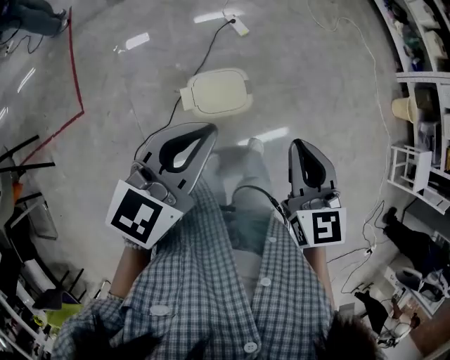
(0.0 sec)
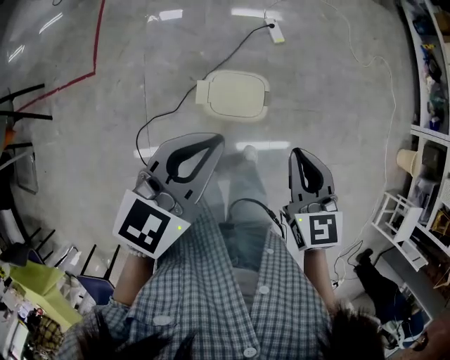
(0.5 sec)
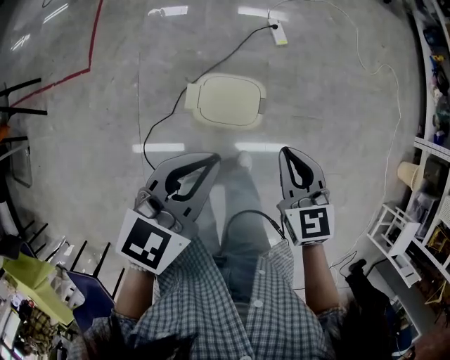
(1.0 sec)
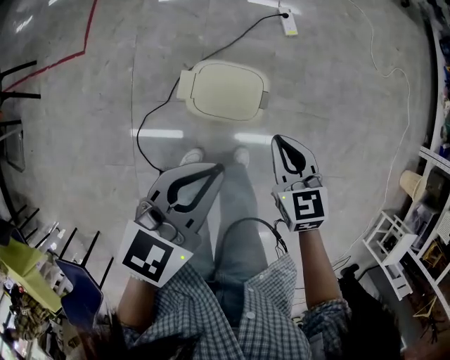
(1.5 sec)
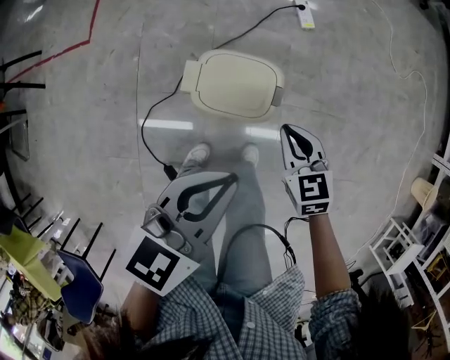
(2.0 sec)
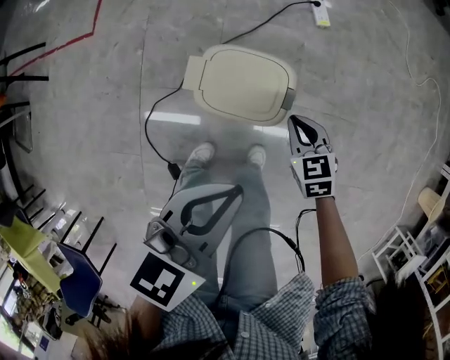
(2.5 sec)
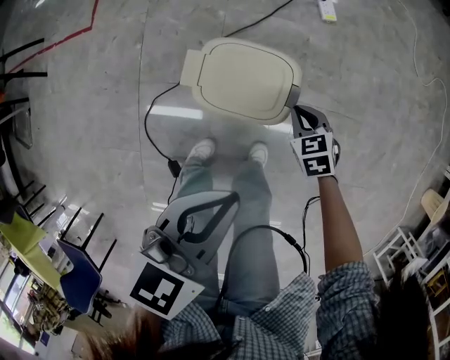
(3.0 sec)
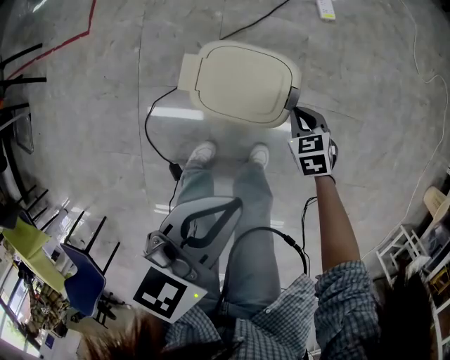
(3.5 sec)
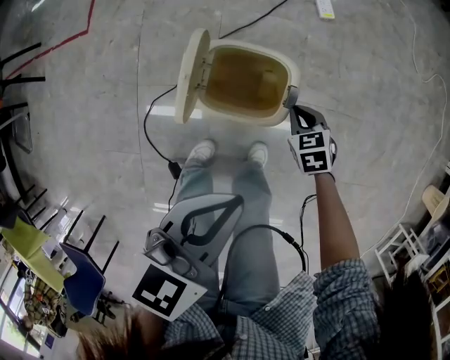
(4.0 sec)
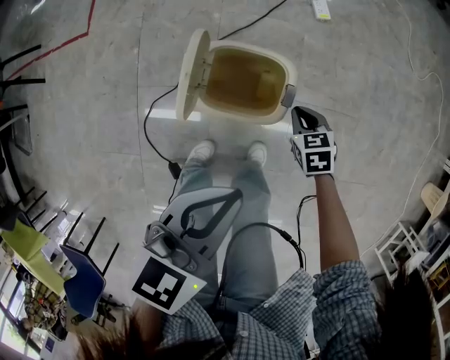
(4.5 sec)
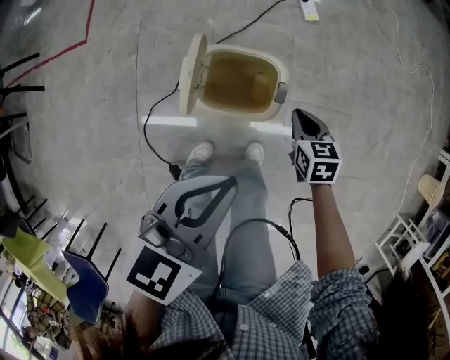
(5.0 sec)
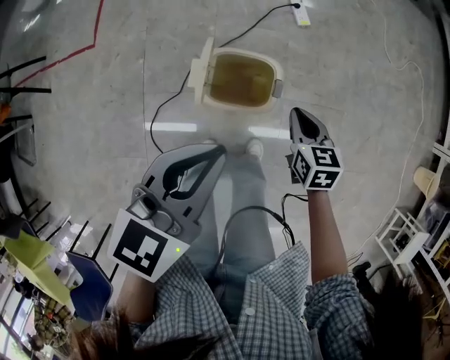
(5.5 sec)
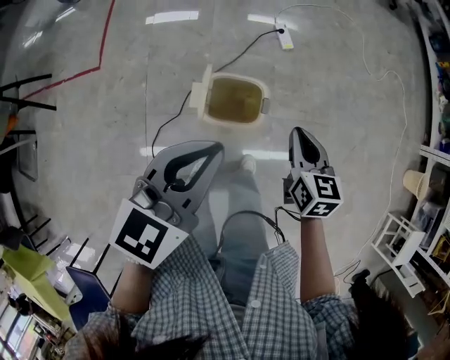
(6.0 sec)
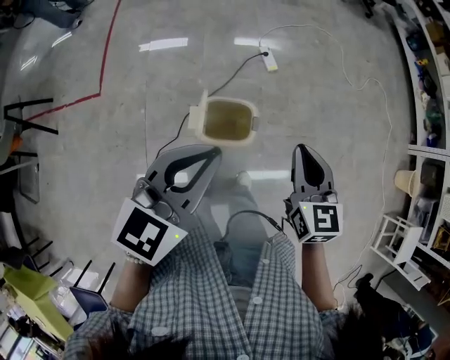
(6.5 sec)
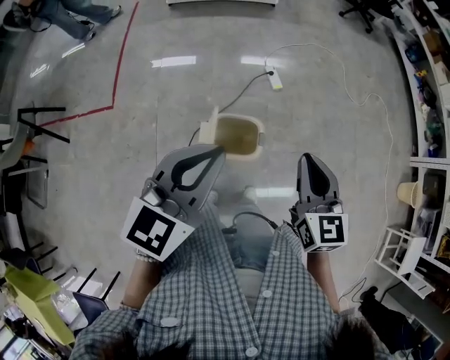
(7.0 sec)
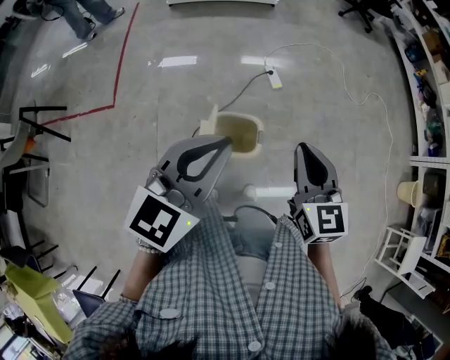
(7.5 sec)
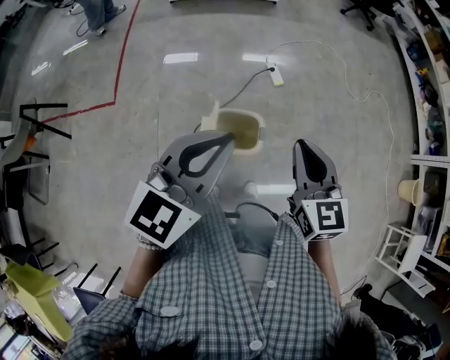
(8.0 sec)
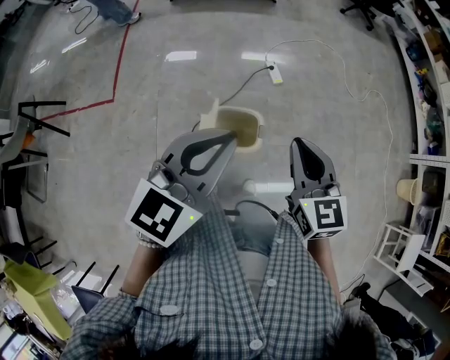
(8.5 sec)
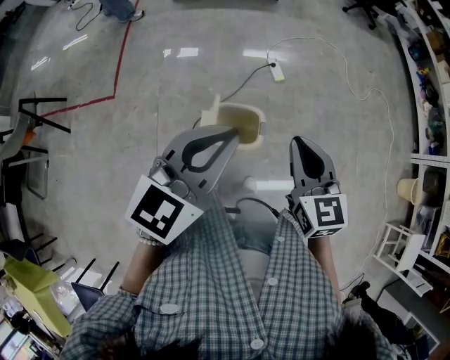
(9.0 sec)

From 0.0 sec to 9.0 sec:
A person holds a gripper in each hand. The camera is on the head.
From 0.0 sec to 2.0 sec: The right gripper shifts approximately 35 cm downward, and changes its angle by some 40 degrees. The left gripper is displaced downward by about 20 cm, and rotates about 20 degrees.
From 2.0 sec to 4.5 sec: The right gripper is displaced downward by about 15 cm.
From 4.5 sec to 7.0 sec: The right gripper travels upward by approximately 50 cm, and angles its fingers upward, by approximately 40 degrees; the left gripper goes roughly 25 cm upward, and rotates about 30 degrees.
From 7.0 sec to 9.0 sec: The grippers move only a little.

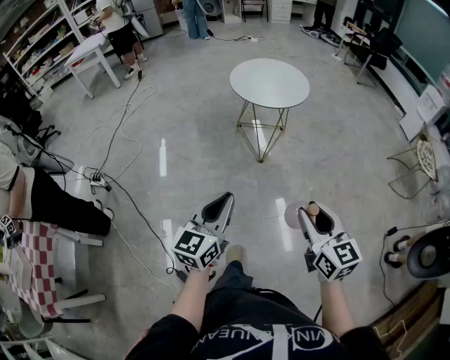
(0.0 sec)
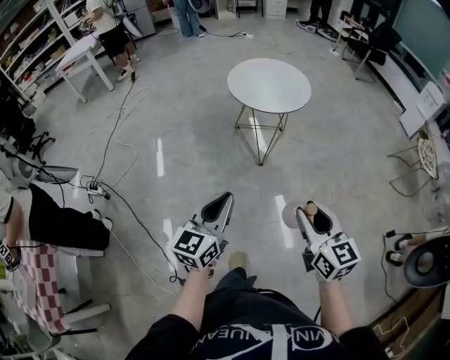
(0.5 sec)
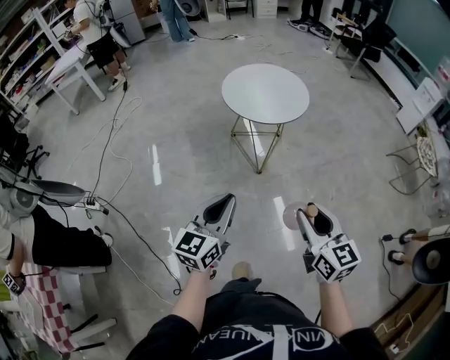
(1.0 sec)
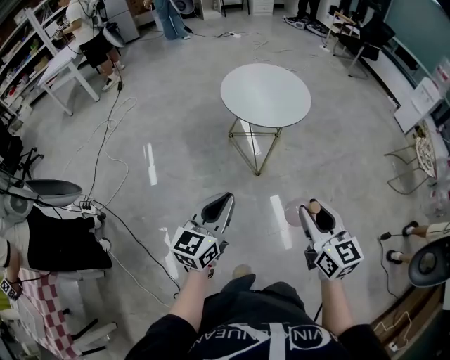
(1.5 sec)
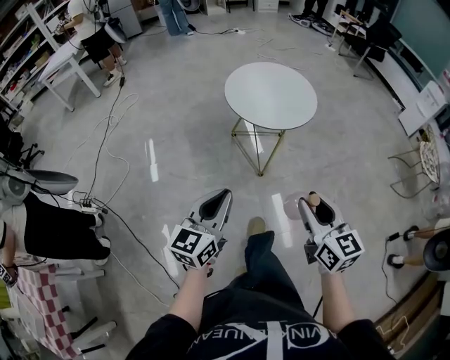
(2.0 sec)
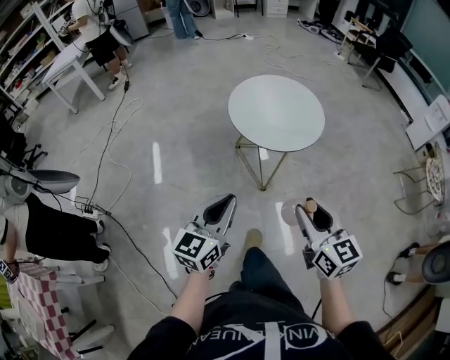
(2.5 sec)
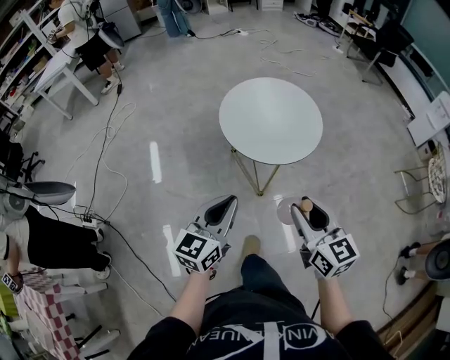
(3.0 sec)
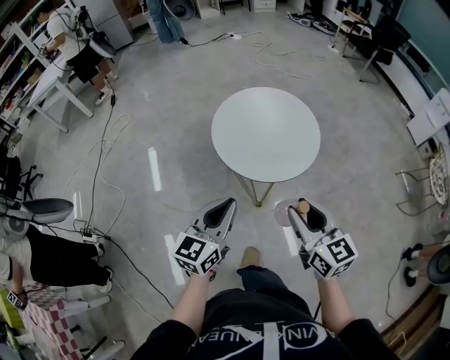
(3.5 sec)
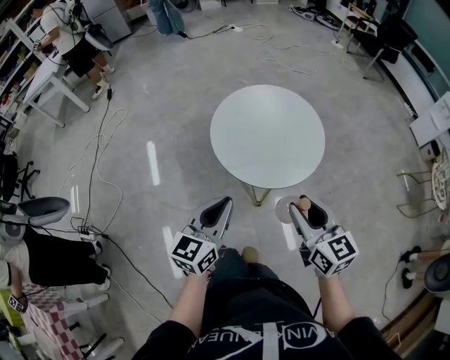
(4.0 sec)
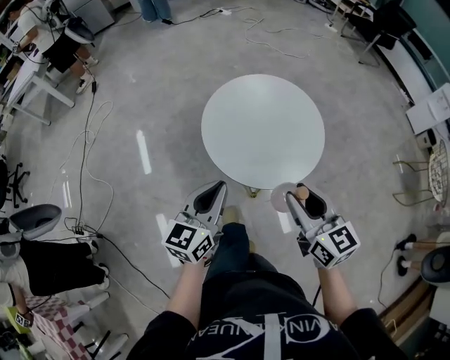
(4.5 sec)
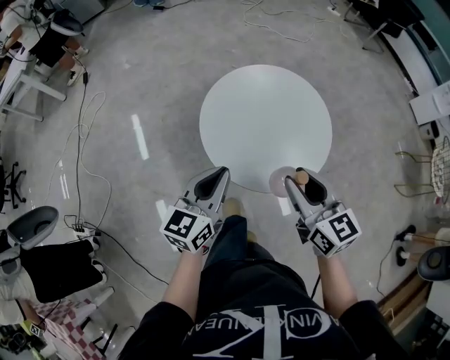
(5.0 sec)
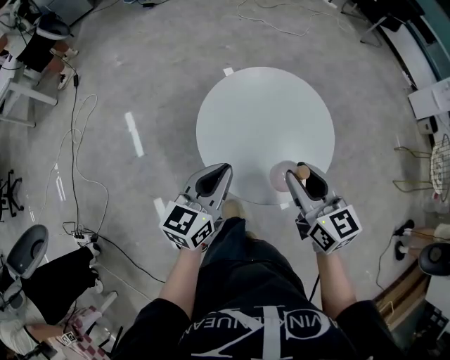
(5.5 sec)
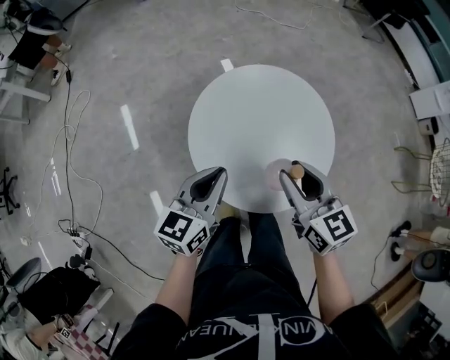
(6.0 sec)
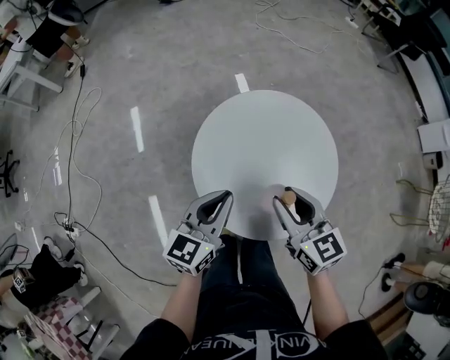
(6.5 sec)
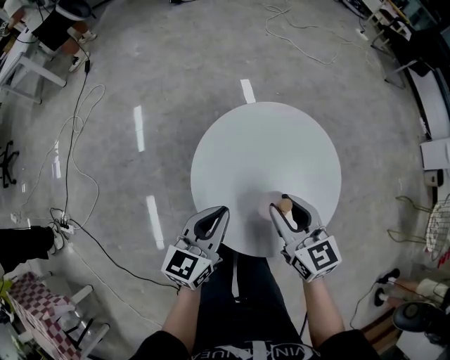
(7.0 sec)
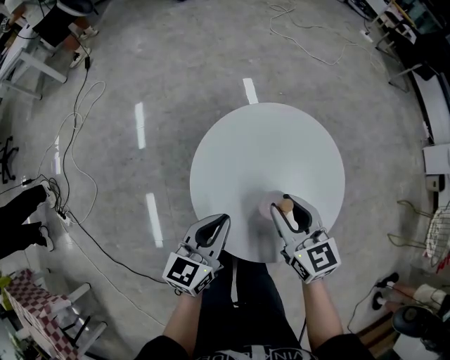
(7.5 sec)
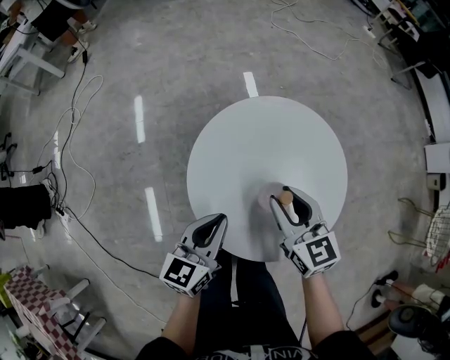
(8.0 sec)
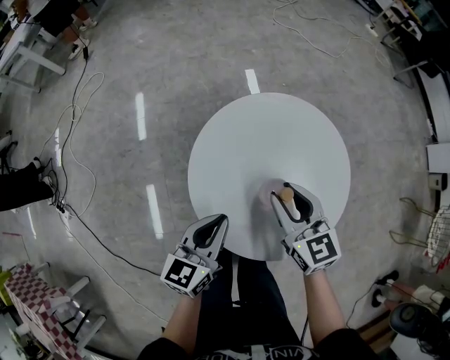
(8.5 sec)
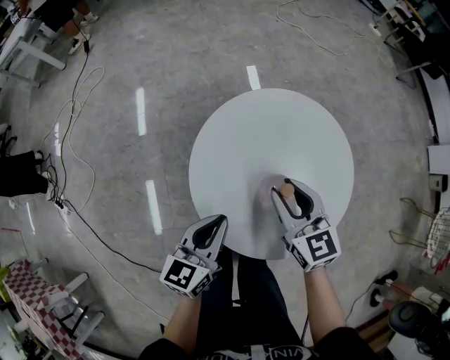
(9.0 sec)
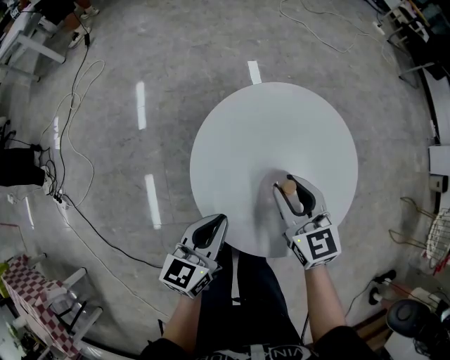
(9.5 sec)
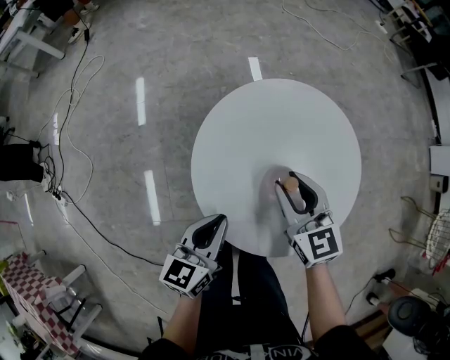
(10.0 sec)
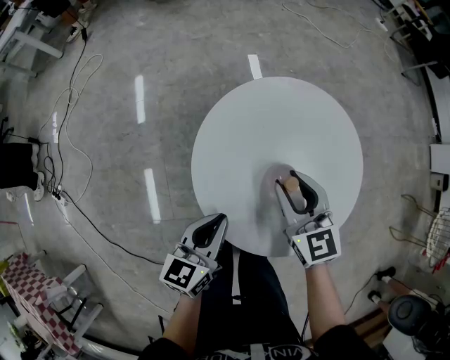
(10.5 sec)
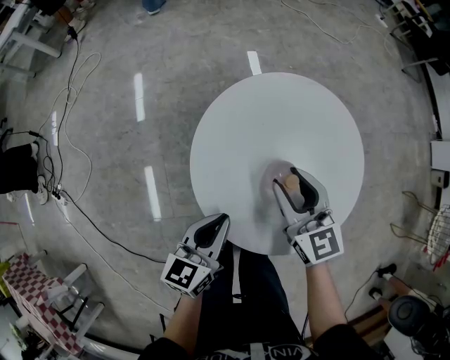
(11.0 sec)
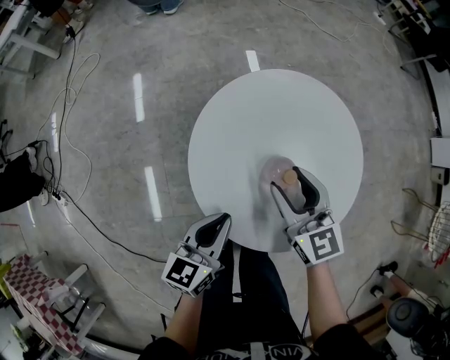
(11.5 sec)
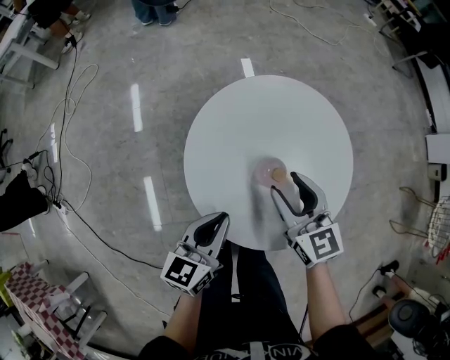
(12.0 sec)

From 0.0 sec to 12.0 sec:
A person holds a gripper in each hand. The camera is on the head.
From 0.0 sec to 2.0 sec: The grippers both shift forward by some 25 cm.
From 2.0 sec to 4.0 sec: Both grippers move forward, approximately 30 cm.
From 4.0 sec to 6.0 sec: Both grippers travel together forward, approximately 25 cm.
From 6.0 sec to 8.0 sec: The right gripper travels forward and downward by about 10 cm, while the left gripper travels downward by roughly 5 cm.
From 8.0 sec to 10.0 sec: The left gripper shifts by some 5 cm.
From 10.0 sec to 12.0 sec: There are only small adjustments of the grippers.

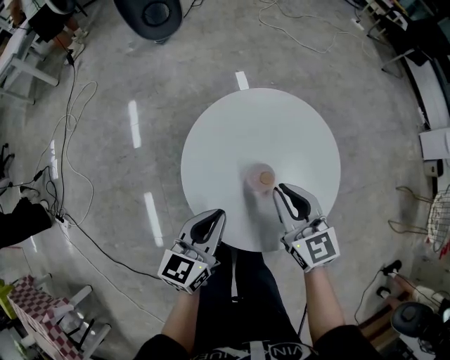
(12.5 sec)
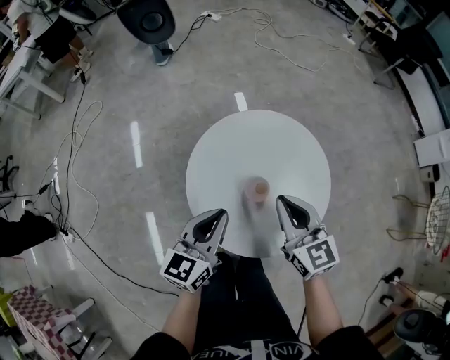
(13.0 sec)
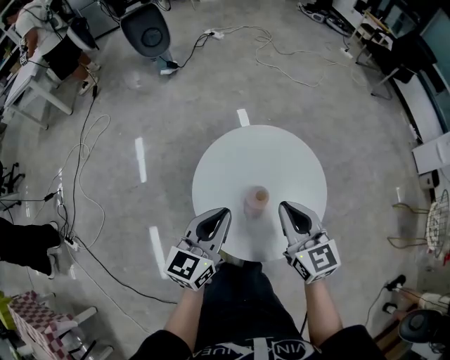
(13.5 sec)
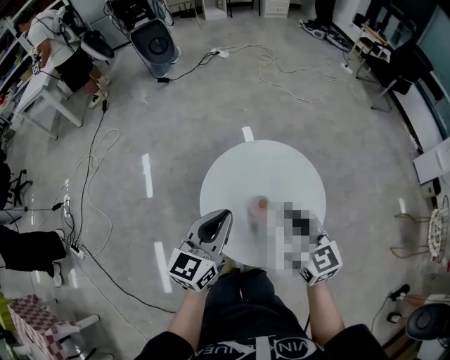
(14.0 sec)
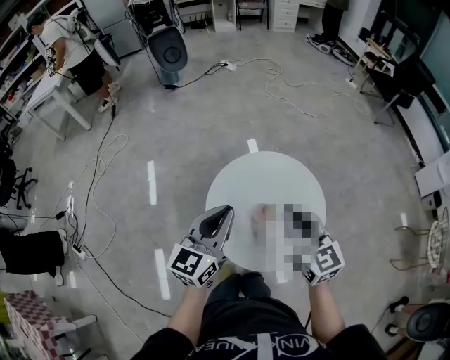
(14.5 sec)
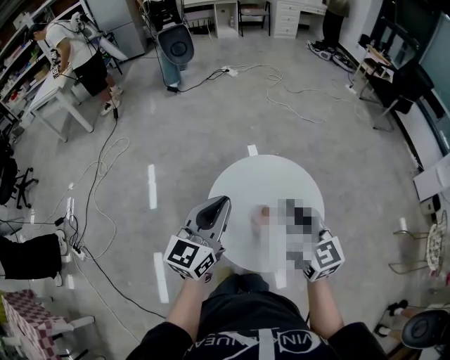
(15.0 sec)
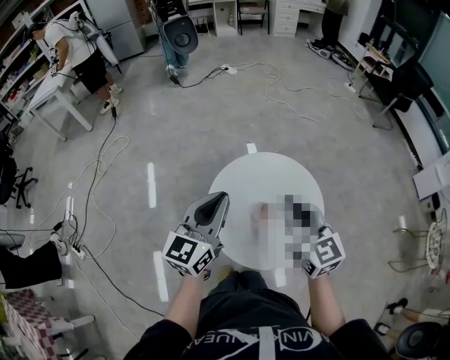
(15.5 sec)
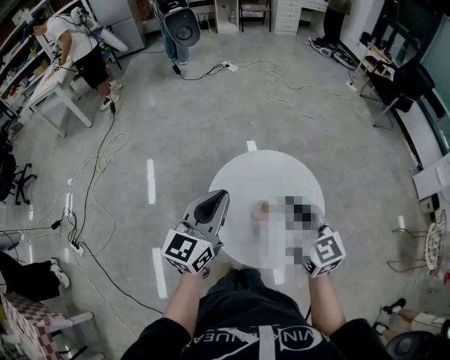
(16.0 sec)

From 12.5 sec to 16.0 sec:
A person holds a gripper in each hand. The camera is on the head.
From 12.5 sec to 14.5 sec: Both grippers move upward, approximately 15 cm.
From 14.5 sec to 16.0 sec: The grippers move only a little.

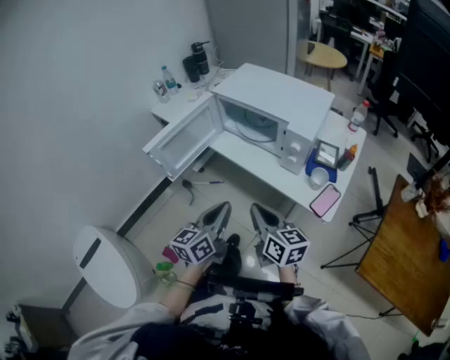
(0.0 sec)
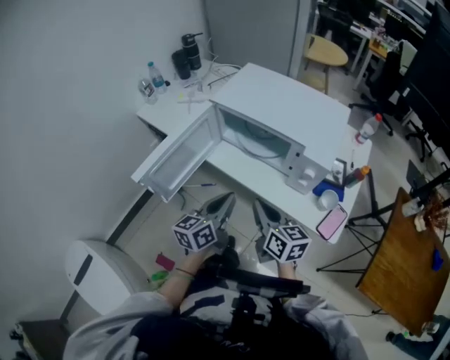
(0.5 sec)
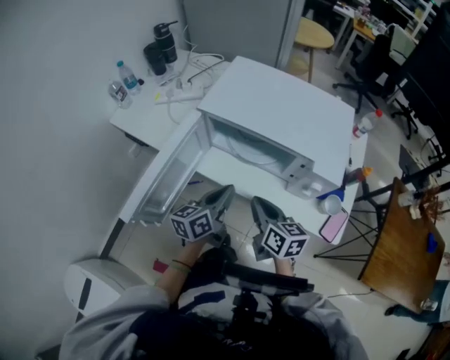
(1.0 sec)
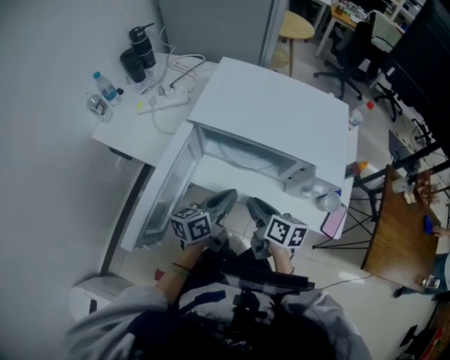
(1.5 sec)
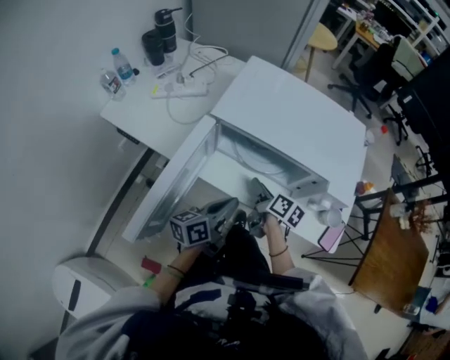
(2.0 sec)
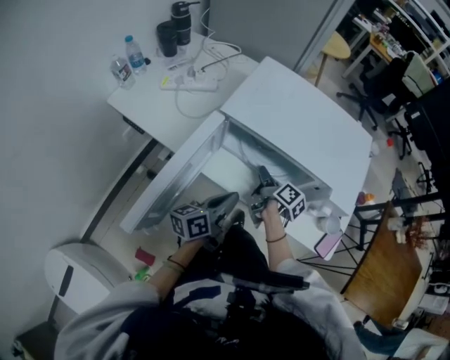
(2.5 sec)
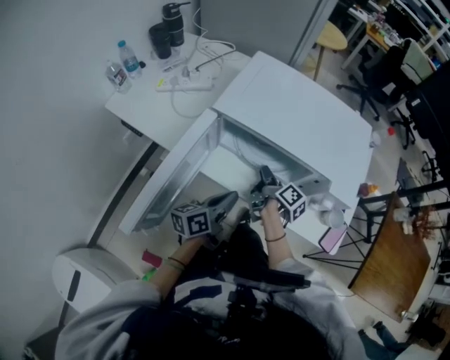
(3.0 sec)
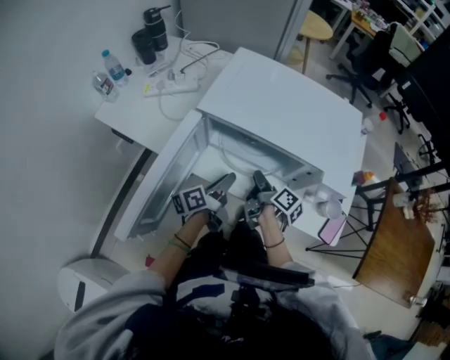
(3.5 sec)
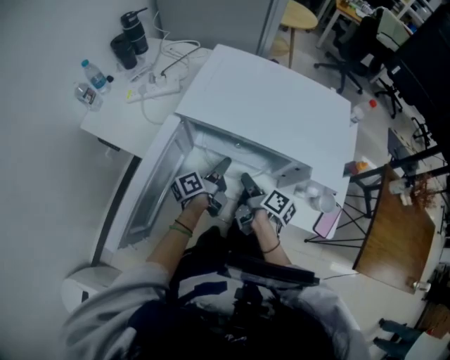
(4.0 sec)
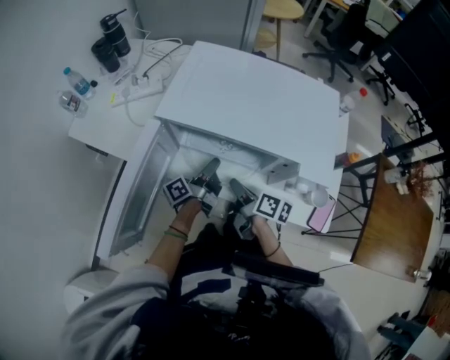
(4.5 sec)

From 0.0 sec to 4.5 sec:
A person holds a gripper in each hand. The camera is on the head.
From 0.0 sec to 2.0 sec: The right gripper moves forward and downward, approximately 35 cm, changes its angle by roughly 40 degrees, and opens its fingers. Meanwhile the left gripper is displaced forward by approximately 25 cm, and turns by roughly 30 degrees.
From 2.0 sec to 4.5 sec: The right gripper closes up, while the left gripper travels forward and downward by about 15 cm, changes its angle by roughly 40 degrees, and opens, then closes once more.
